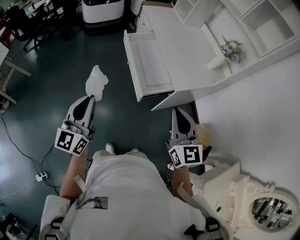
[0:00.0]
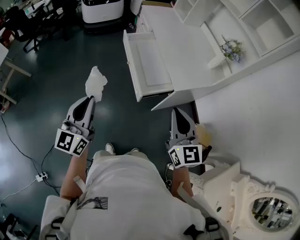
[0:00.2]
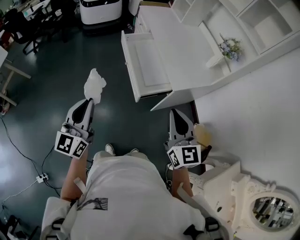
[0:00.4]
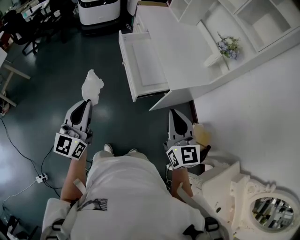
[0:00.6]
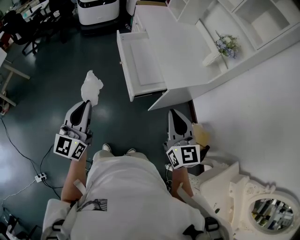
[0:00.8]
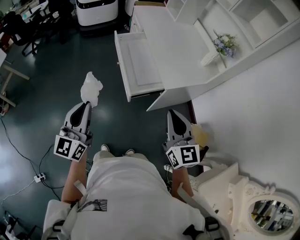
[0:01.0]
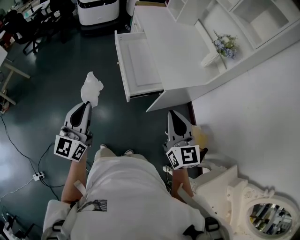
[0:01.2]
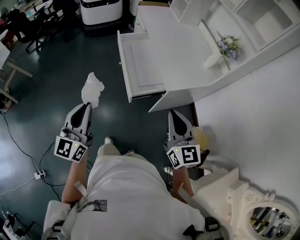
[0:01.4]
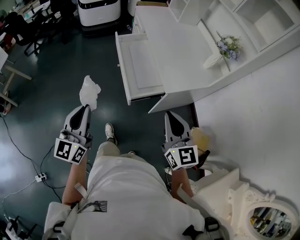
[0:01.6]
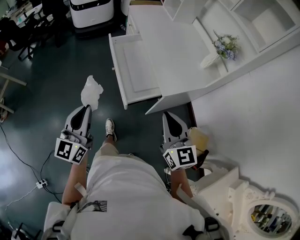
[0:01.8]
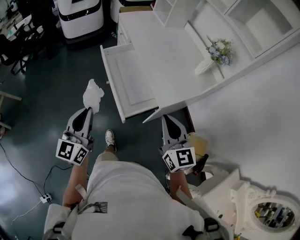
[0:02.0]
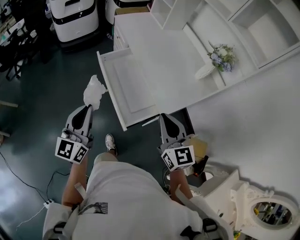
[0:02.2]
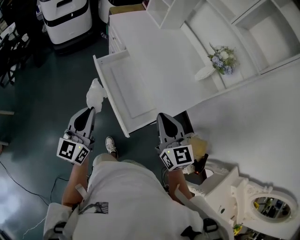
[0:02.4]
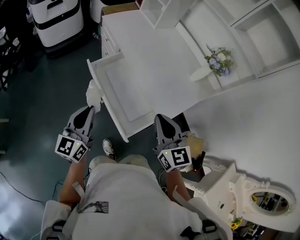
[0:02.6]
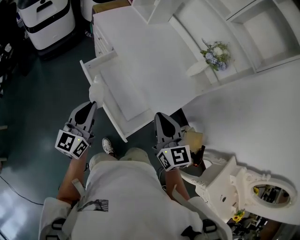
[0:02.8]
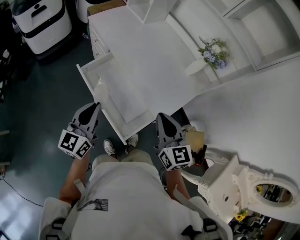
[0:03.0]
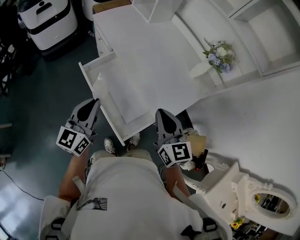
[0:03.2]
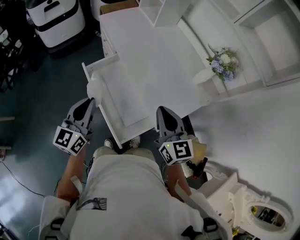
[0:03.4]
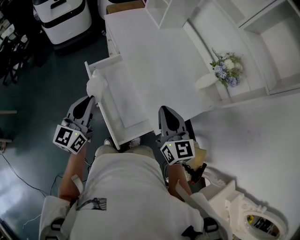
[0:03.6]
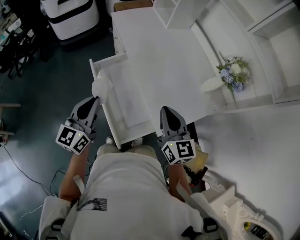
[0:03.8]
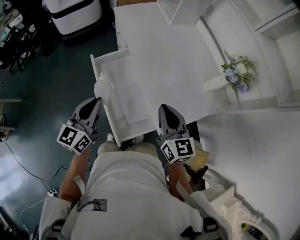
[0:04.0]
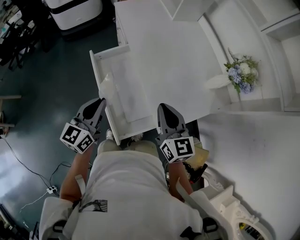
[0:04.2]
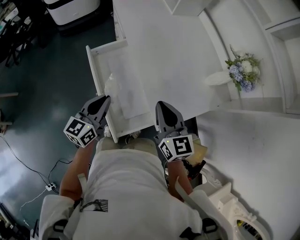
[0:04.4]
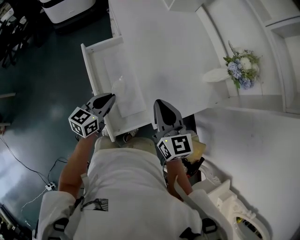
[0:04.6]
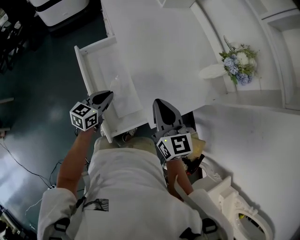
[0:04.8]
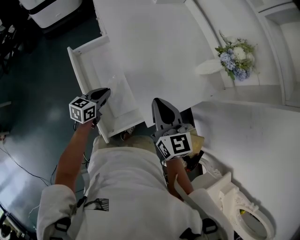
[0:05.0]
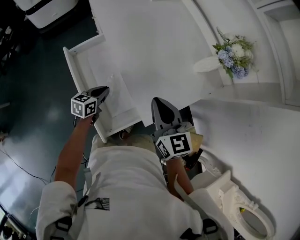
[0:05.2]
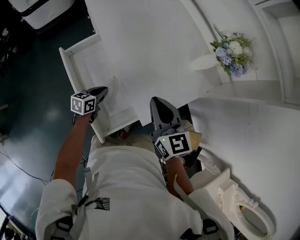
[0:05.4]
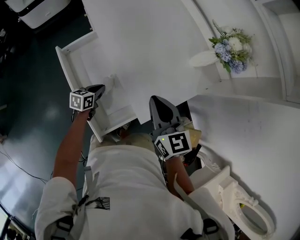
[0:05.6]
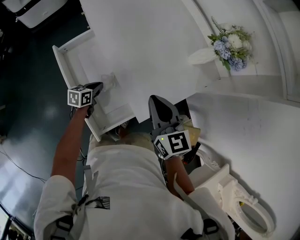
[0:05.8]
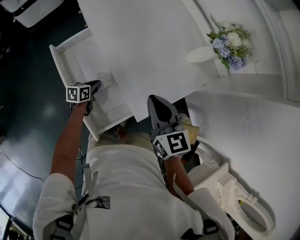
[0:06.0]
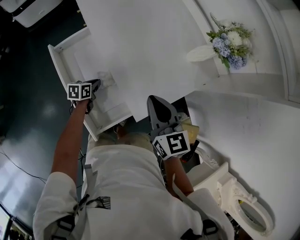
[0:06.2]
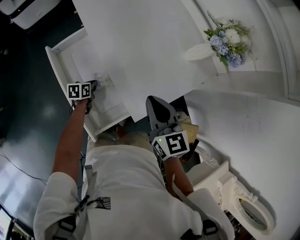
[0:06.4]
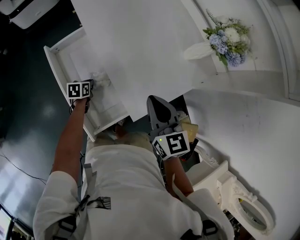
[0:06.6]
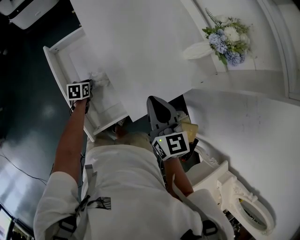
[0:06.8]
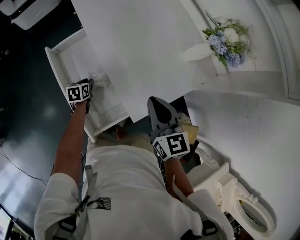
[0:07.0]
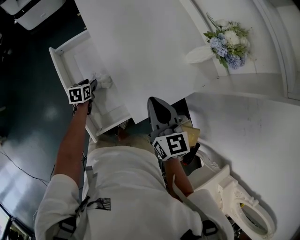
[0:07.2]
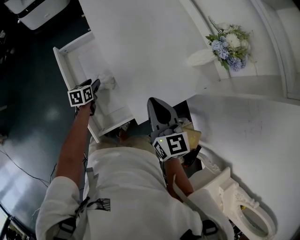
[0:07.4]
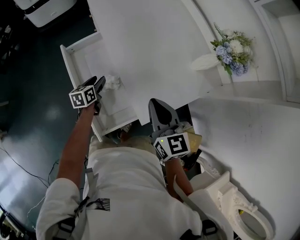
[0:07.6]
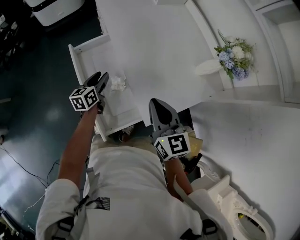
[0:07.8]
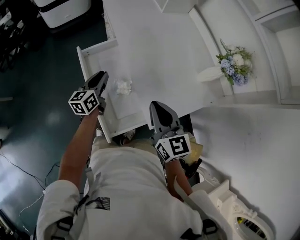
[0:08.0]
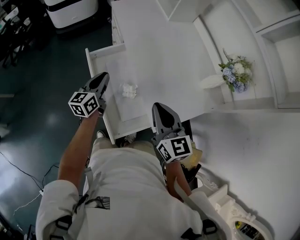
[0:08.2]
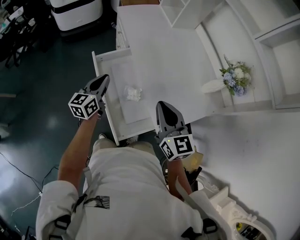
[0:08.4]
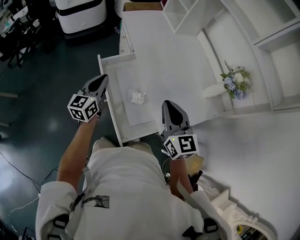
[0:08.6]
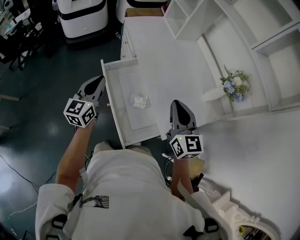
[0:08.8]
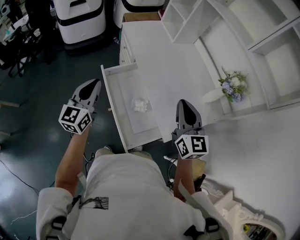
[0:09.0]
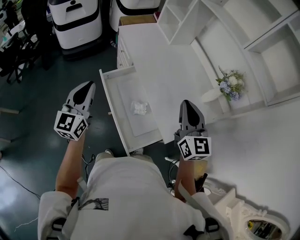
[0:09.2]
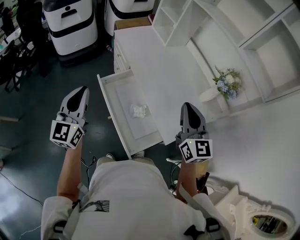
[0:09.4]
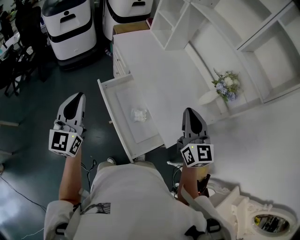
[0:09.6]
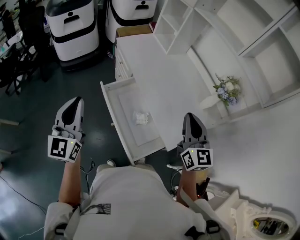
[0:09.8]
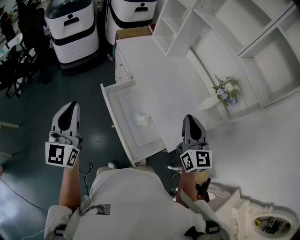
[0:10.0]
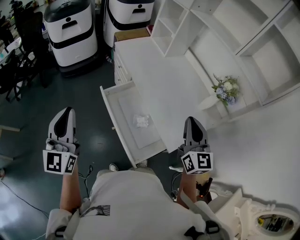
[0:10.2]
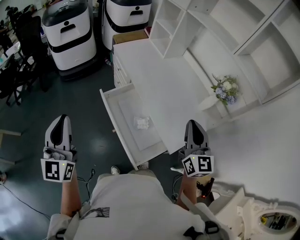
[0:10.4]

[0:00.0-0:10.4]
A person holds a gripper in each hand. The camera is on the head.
0:00.0 to 0:01.4: Both grippers travel together to the right, approximately 10 cm.
0:01.4 to 0:03.0: The two grippers go about 35 cm forward. The left gripper turns by about 30 degrees. Meanwhile the right gripper turns by roughly 20 degrees.
0:03.0 to 0:04.4: The left gripper travels downward and to the right by approximately 10 cm. Meanwhile the right gripper heads forward and downward, covering approximately 10 cm.
0:04.4 to 0:06.0: The right gripper moves to the right, roughly 10 cm, while the left gripper goes approximately 25 cm downward, and angles its fingers downward, by about 30 degrees.
0:06.0 to 0:07.4: The left gripper opens.
0:07.4 to 0:09.0: The right gripper goes about 20 cm upward and to the left, while the left gripper moves upward and to the left, roughly 40 cm, tips its fingers upward by approximately 50 degrees, and closes its fingers.
0:09.0 to 0:10.4: The right gripper changes place by some 5 cm. Meanwhile the left gripper shifts some 20 cm upward, backward and to the left.

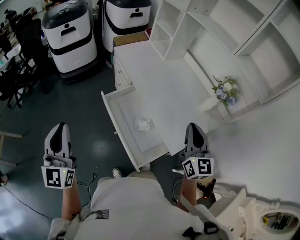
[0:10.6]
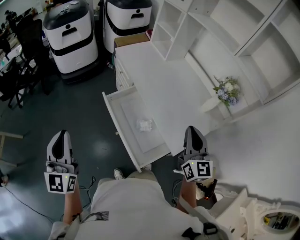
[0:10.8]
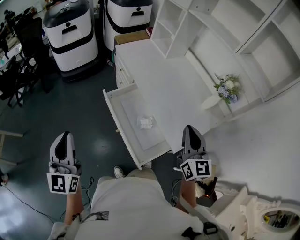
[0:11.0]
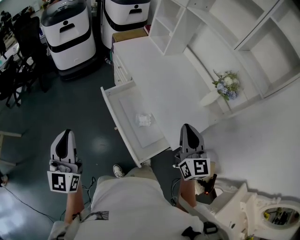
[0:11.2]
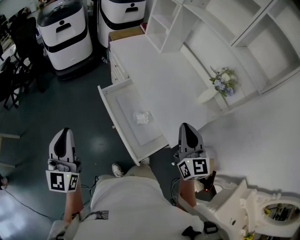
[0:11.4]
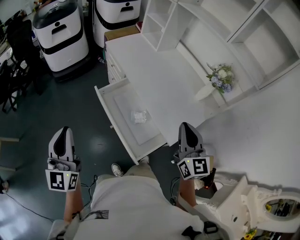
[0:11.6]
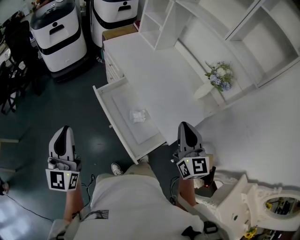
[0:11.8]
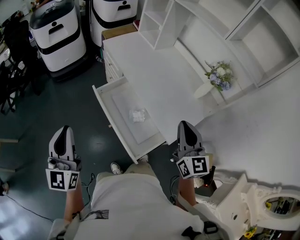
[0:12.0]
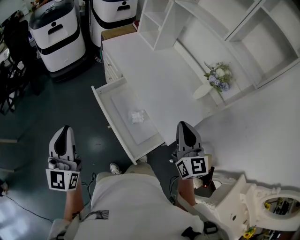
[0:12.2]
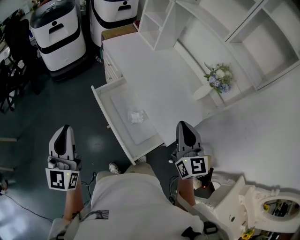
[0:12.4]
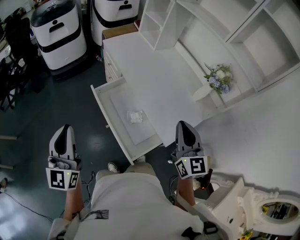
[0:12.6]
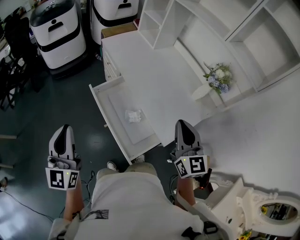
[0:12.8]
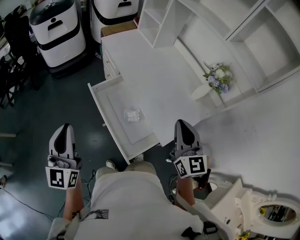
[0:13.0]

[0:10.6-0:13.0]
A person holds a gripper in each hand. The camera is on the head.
0:10.6 to 0:11.8: The right gripper shifts by about 5 cm.
0:11.8 to 0:13.0: The grippers make only small movements.

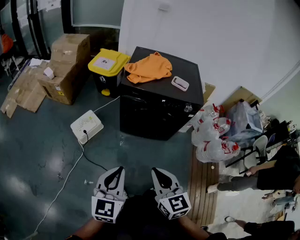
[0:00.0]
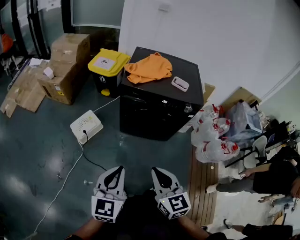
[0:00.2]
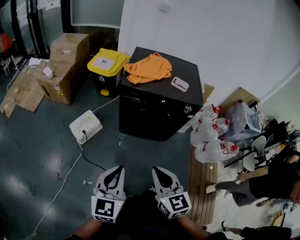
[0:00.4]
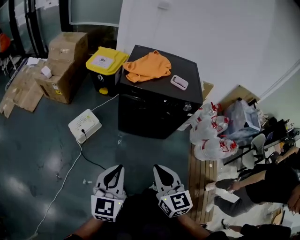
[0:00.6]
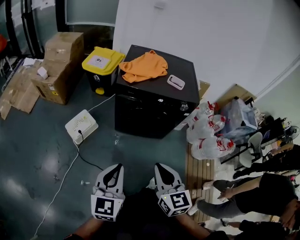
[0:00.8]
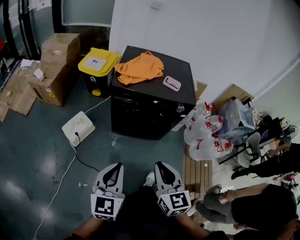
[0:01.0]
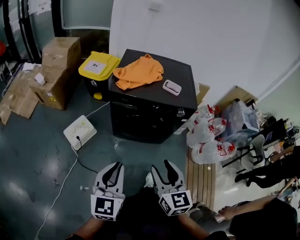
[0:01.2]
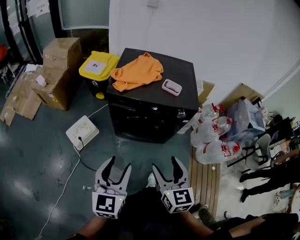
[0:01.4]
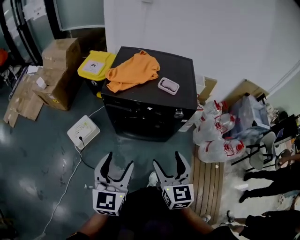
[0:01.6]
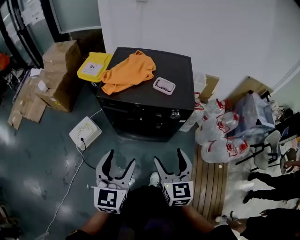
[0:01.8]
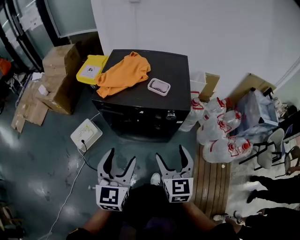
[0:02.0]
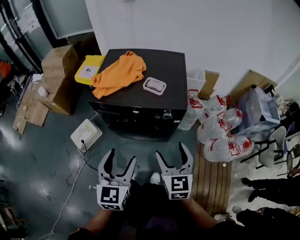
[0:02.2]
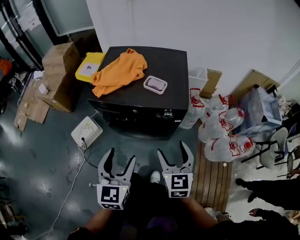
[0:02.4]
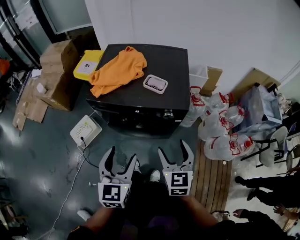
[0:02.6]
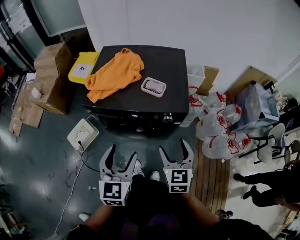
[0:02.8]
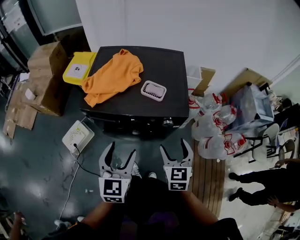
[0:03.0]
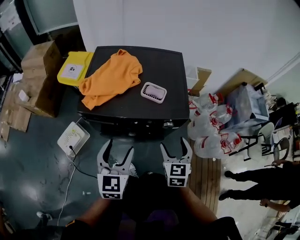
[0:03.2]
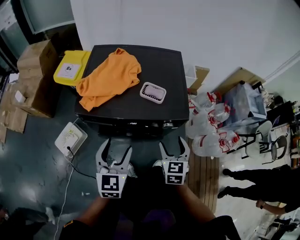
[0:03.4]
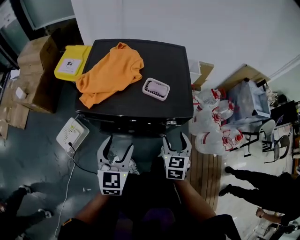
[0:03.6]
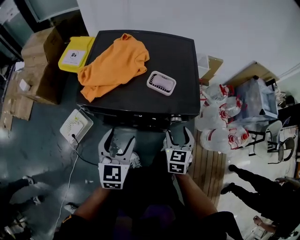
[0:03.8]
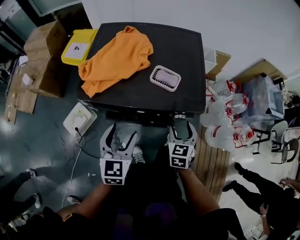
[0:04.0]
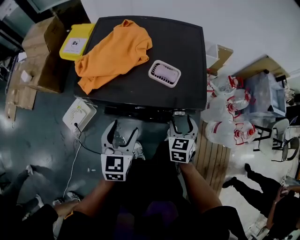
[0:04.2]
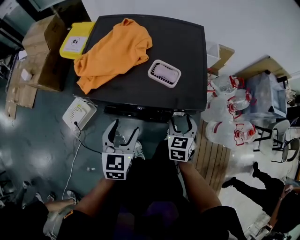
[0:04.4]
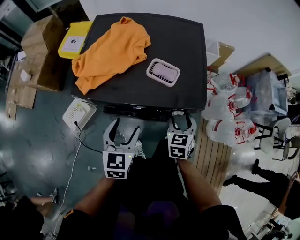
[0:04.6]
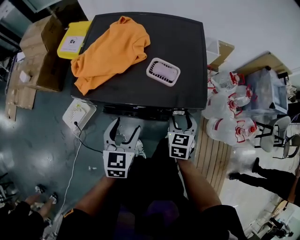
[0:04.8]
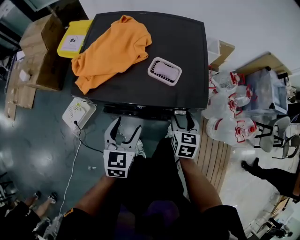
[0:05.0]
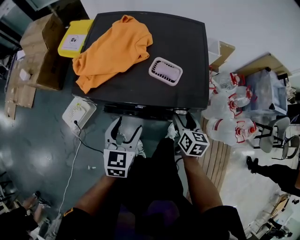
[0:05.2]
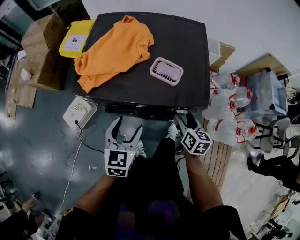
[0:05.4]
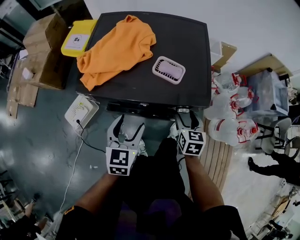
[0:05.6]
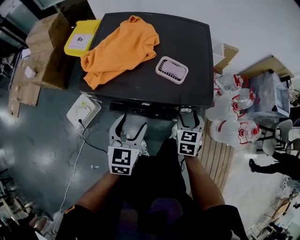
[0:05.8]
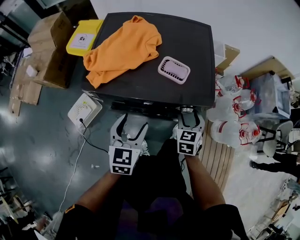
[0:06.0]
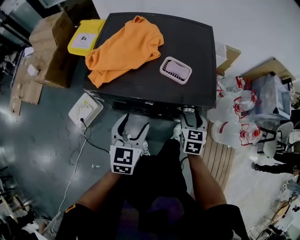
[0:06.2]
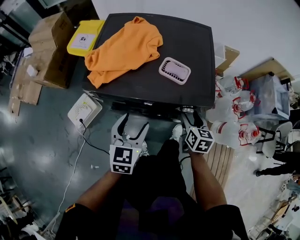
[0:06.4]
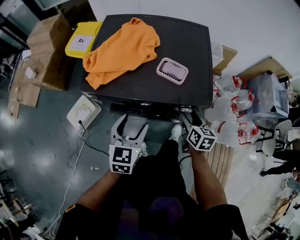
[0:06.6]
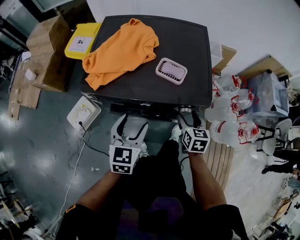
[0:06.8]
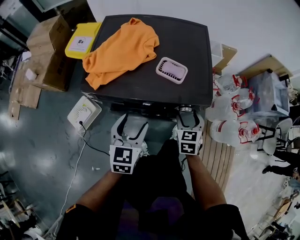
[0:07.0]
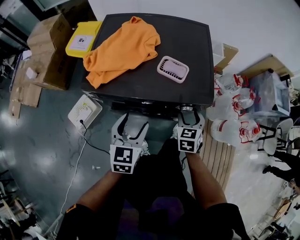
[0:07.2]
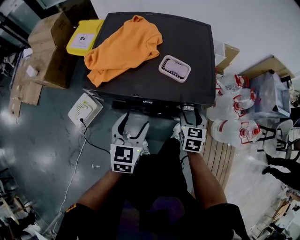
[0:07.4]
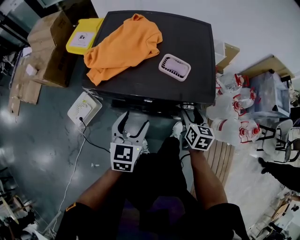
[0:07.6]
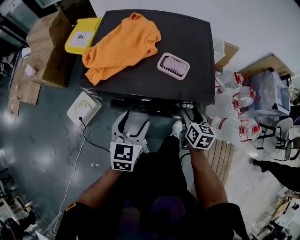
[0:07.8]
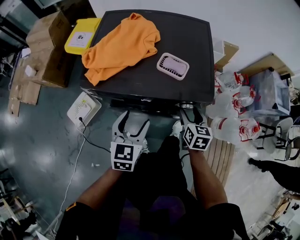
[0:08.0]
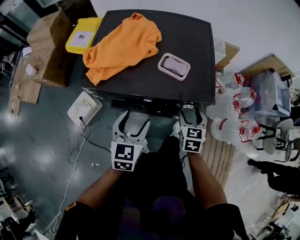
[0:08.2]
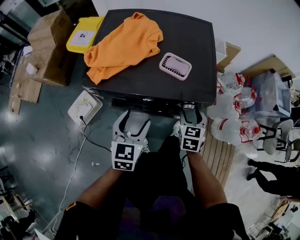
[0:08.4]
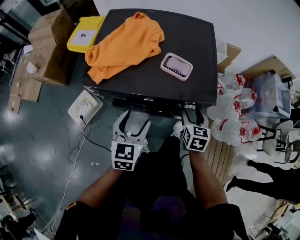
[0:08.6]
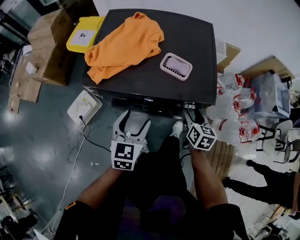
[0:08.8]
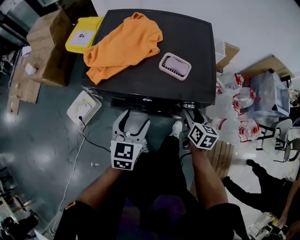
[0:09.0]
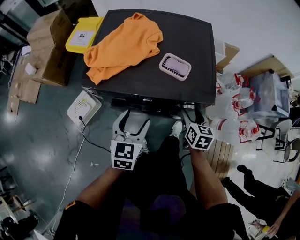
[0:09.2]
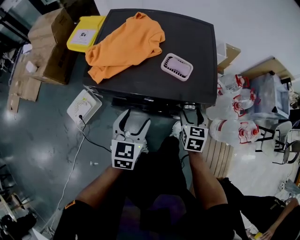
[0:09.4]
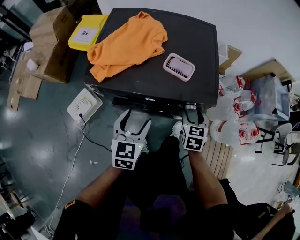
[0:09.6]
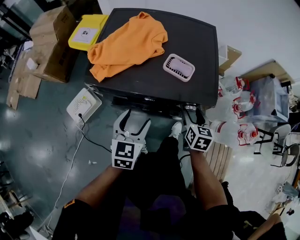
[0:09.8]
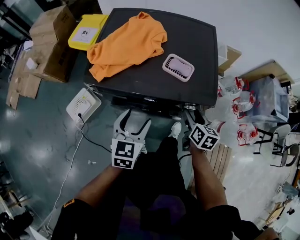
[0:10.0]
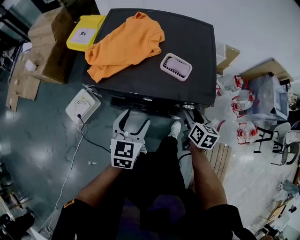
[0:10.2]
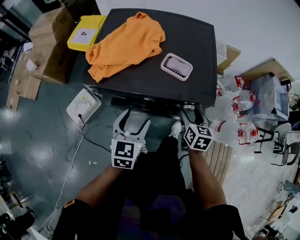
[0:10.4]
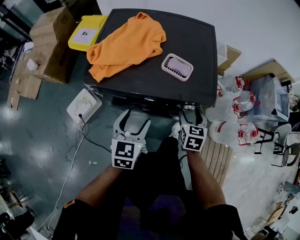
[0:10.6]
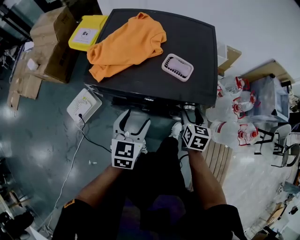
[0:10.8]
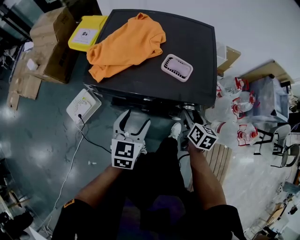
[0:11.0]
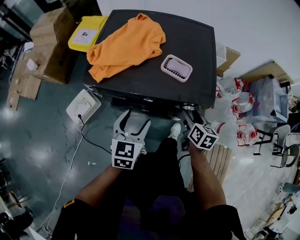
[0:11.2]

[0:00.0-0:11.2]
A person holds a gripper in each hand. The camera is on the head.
0:00.0 to 0:01.6: The grippers both shift forward and to the right by approximately 20 cm. The left gripper opens; the right gripper opens up.
0:01.6 to 0:03.2: The left gripper is displaced forward by some 20 cm, while the right gripper shifts some 25 cm forward, to the right and downward.
0:03.2 to 0:04.8: Both grippers move downward and forward, about 15 cm.
0:04.8 to 0:06.4: The right gripper changes its angle by roughly 20 degrees.
0:08.0 to 0:09.6: There are only small adjustments of the grippers.
0:09.6 to 0:11.2: The right gripper changes its angle by roughly 30 degrees.
